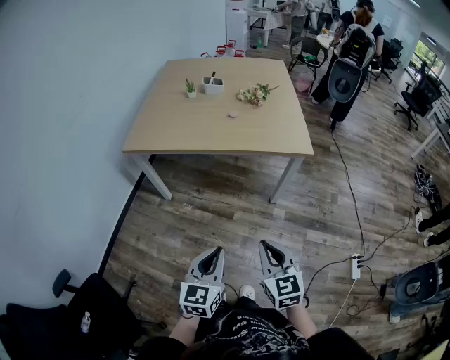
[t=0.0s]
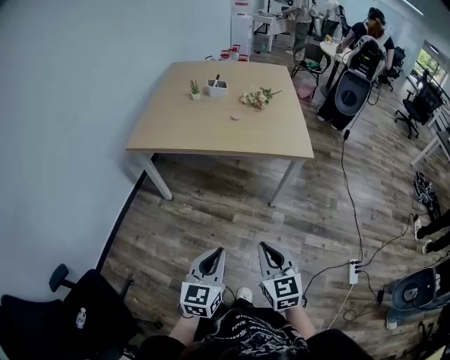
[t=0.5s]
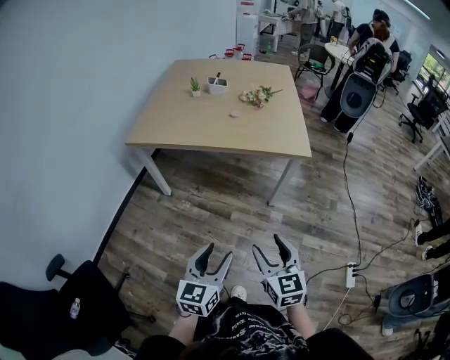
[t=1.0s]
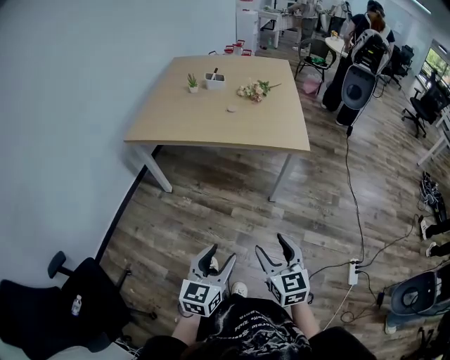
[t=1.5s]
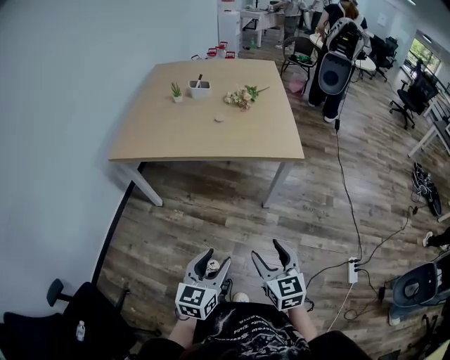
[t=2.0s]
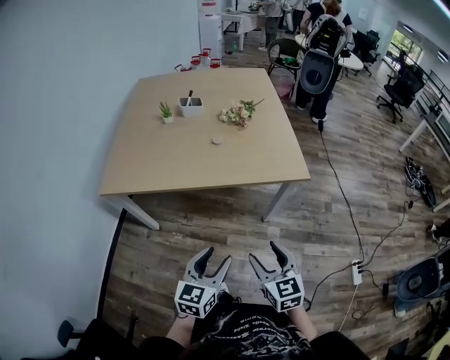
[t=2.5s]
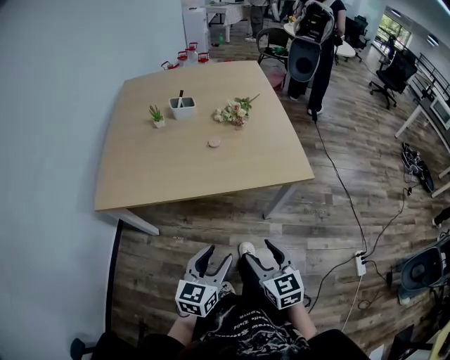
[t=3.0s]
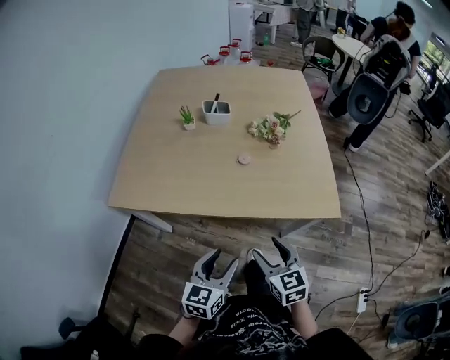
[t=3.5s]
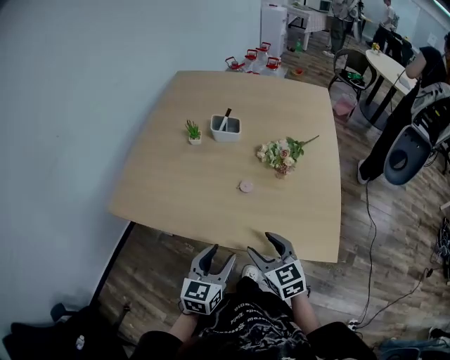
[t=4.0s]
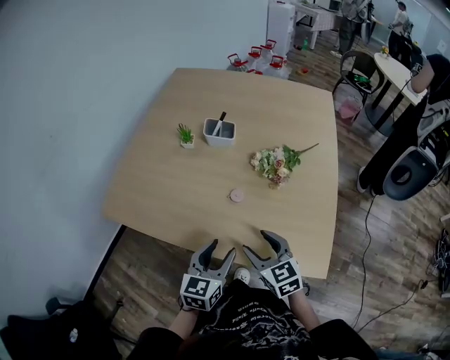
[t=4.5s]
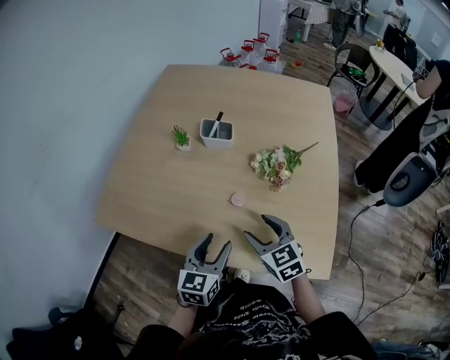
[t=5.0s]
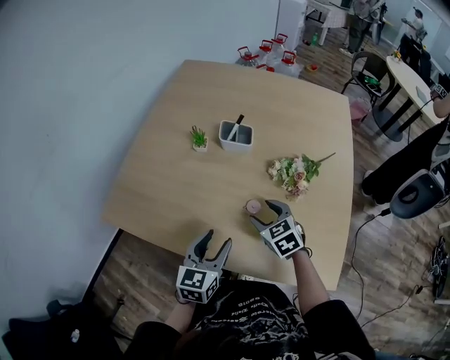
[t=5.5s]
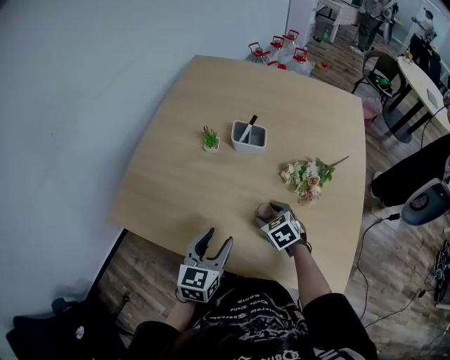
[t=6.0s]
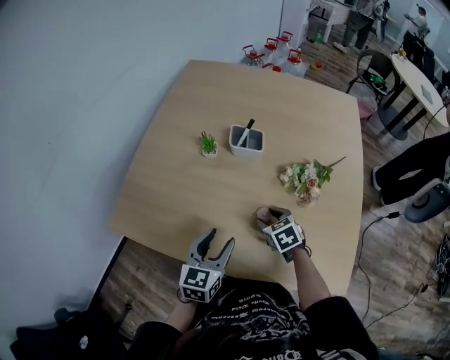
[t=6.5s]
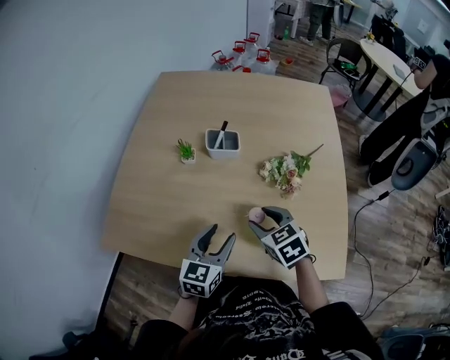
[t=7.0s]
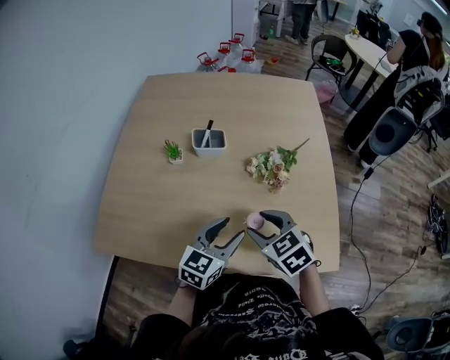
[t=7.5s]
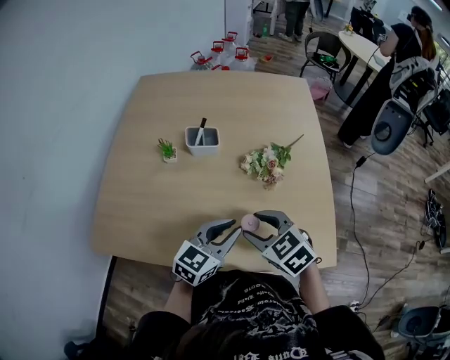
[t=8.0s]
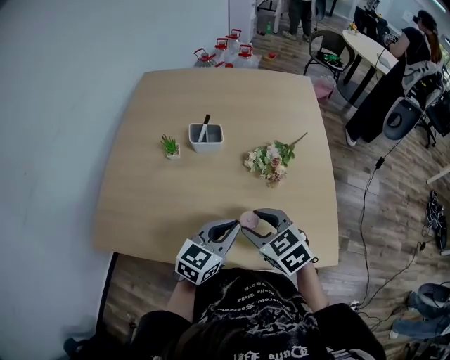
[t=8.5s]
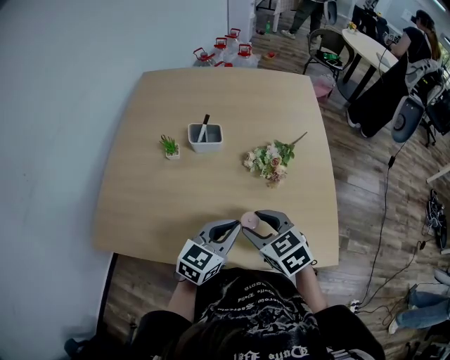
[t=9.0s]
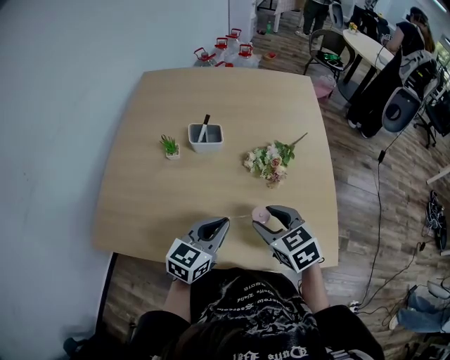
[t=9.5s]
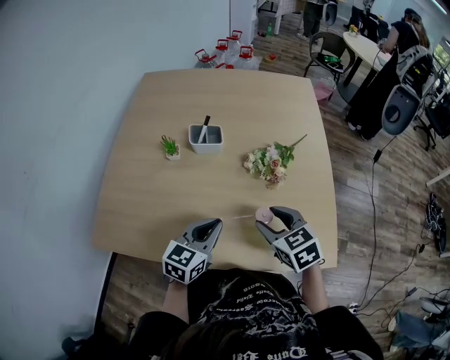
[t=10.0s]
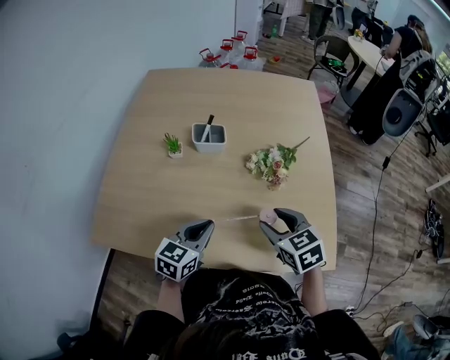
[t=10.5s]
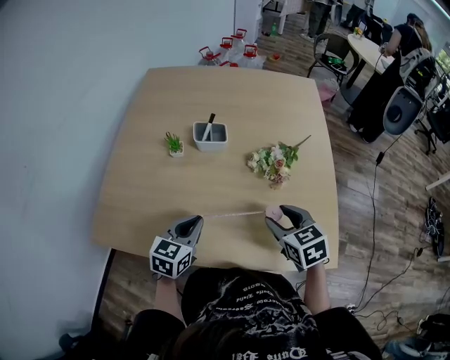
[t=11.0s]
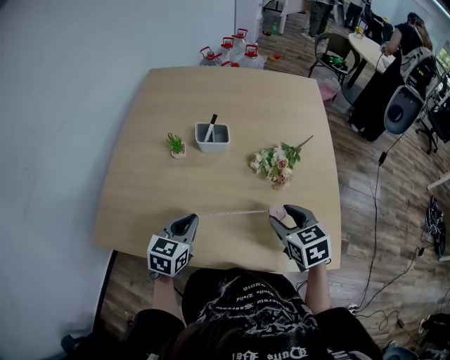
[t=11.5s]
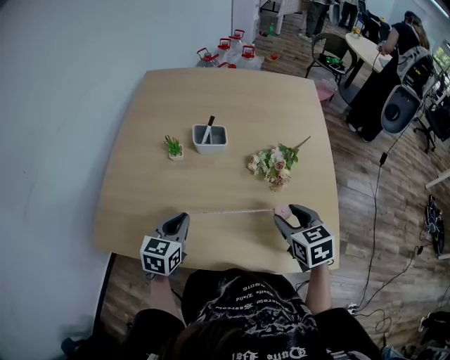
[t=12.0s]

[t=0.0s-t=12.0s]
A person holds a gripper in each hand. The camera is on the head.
t=0.0s to t=2.0s: The right gripper goes about 10 cm to the right and downward, and opens its fingers, while the left gripper moves to the right, about 5 cm, and opens its fingers.
t=2.0s to t=4.0s: The pair of grippers is taken forward, some 50 cm. The right gripper rotates about 20 degrees.
t=4.0s to t=6.0s: The left gripper goes roughly 15 cm forward. The right gripper heads forward and downward, covering some 25 cm, and swivels some 30 degrees.
t=6.0s to t=8.0s: The right gripper goes about 20 cm upward and backward, while the left gripper travels to the right by some 15 cm, turns by about 40 degrees, and closes its fingers.
t=8.0s to t=10.0s: The left gripper travels to the left by roughly 5 cm.
t=10.0s to t=12.0s: The left gripper goes some 10 cm to the left.

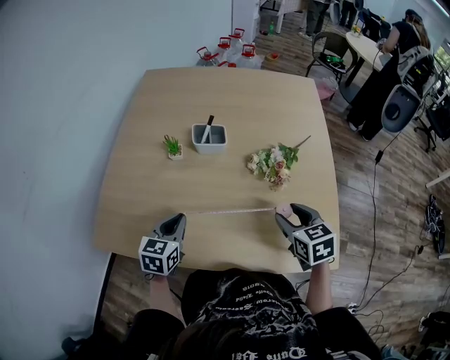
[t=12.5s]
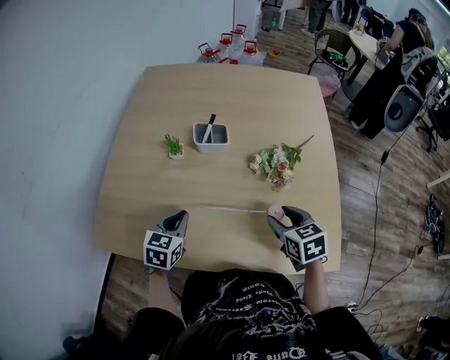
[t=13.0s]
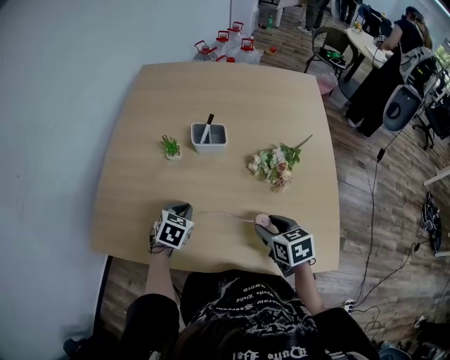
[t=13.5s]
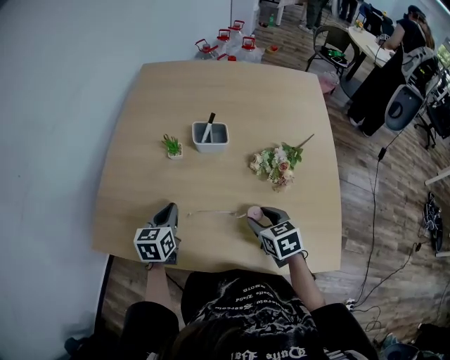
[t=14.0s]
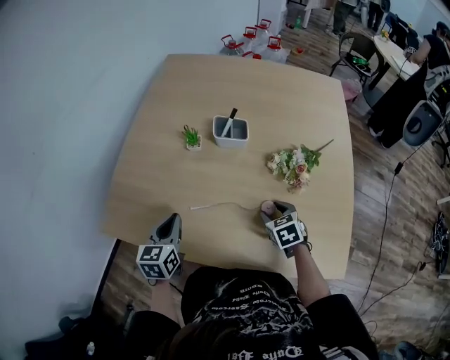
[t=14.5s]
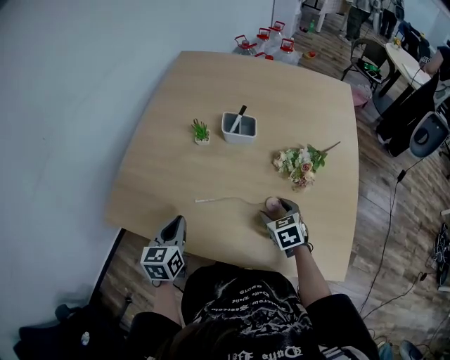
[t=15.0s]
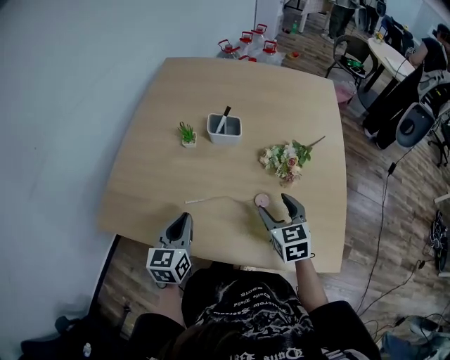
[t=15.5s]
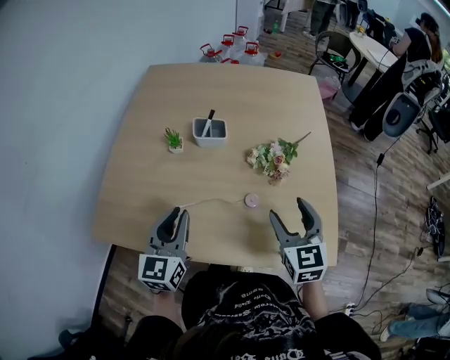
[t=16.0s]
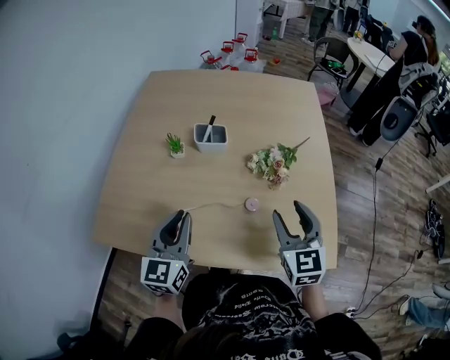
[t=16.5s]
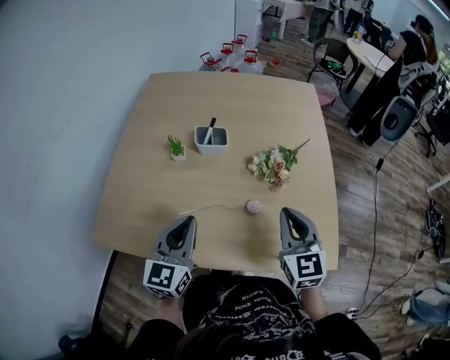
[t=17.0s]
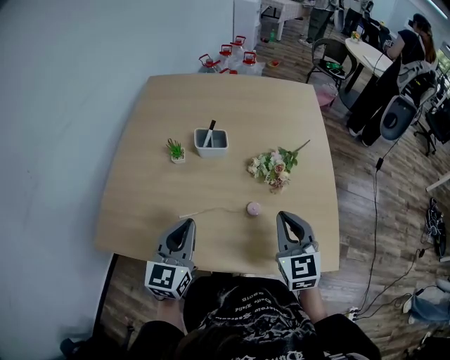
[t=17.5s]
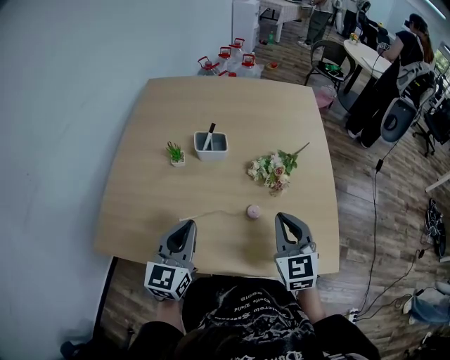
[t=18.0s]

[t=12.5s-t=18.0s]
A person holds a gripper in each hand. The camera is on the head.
t=12.5s to t=14.5s: The right gripper goes about 15 cm downward and to the left; the left gripper is displaced to the left by roughly 5 cm, and travels downward and back again, roughly 10 cm each way.
t=14.5s to t=16.0s: The left gripper is displaced upward and to the right by some 15 cm, and swivels about 20 degrees. Meanwhile the right gripper is displaced upward by approximately 20 cm, and angles its fingers upward, by some 30 degrees.
t=16.0s to t=18.0s: The right gripper closes up.

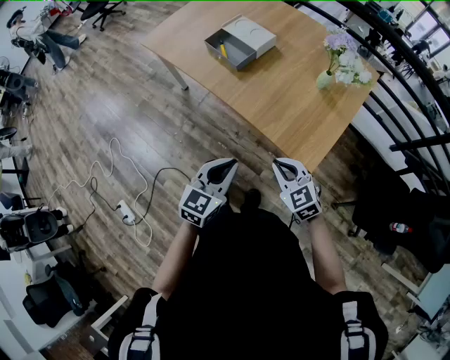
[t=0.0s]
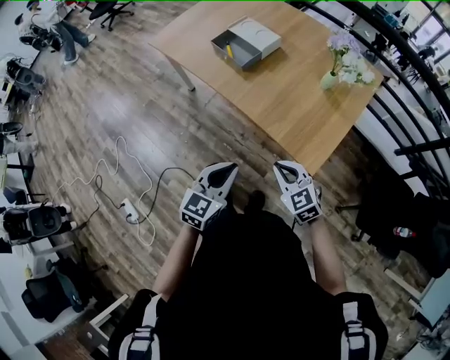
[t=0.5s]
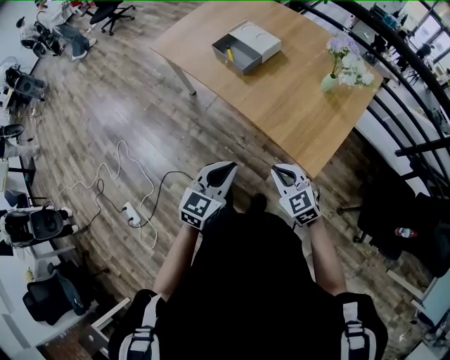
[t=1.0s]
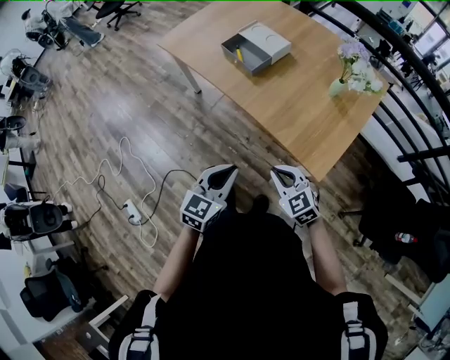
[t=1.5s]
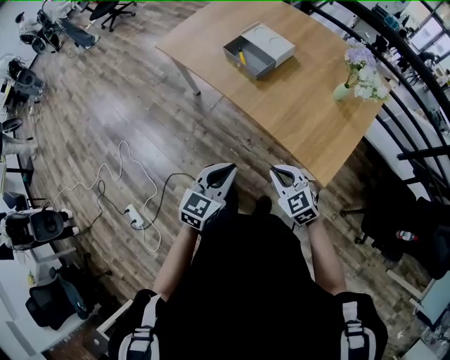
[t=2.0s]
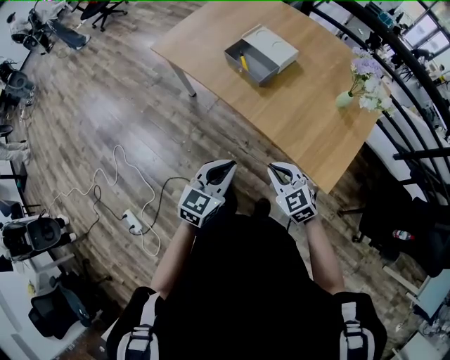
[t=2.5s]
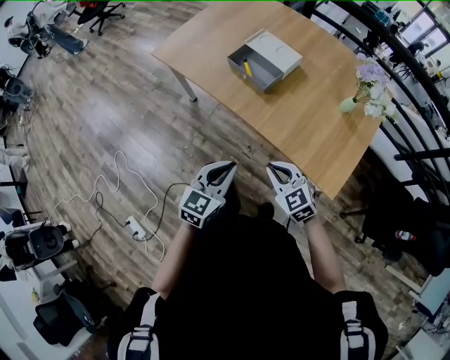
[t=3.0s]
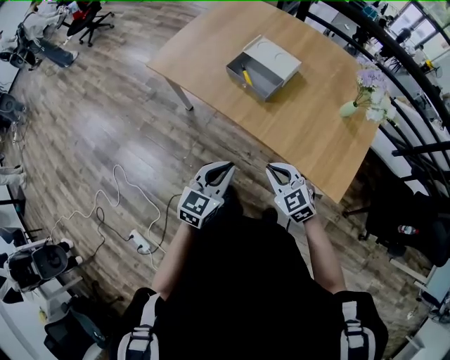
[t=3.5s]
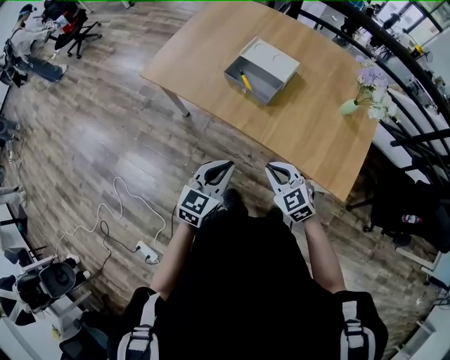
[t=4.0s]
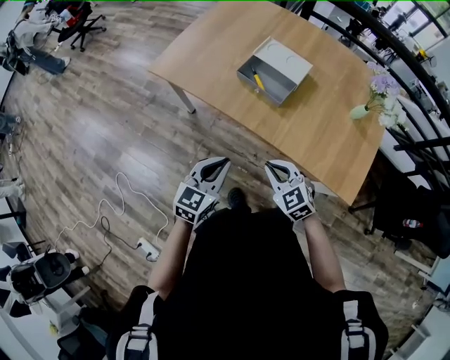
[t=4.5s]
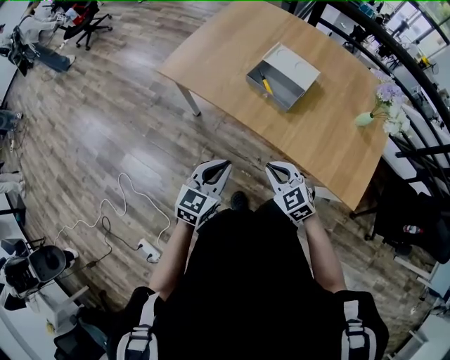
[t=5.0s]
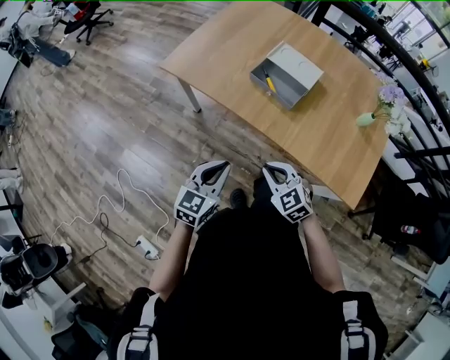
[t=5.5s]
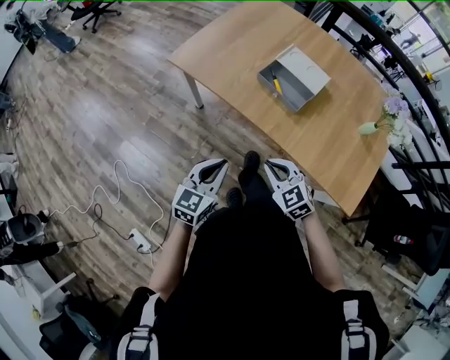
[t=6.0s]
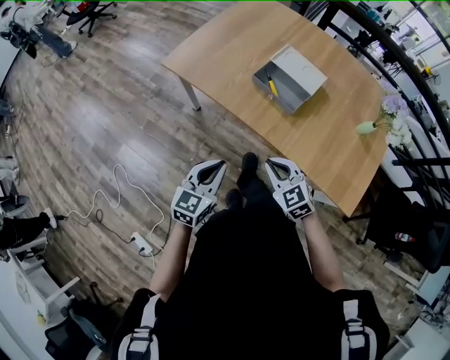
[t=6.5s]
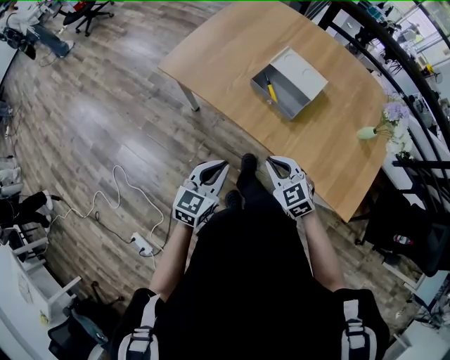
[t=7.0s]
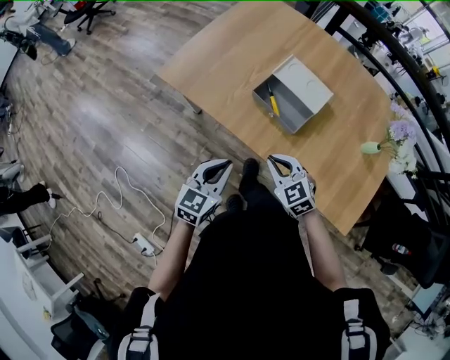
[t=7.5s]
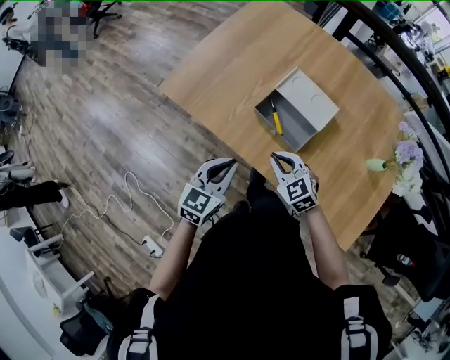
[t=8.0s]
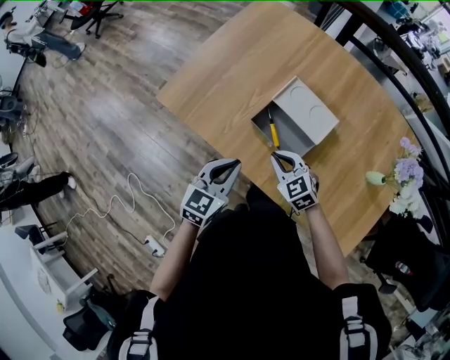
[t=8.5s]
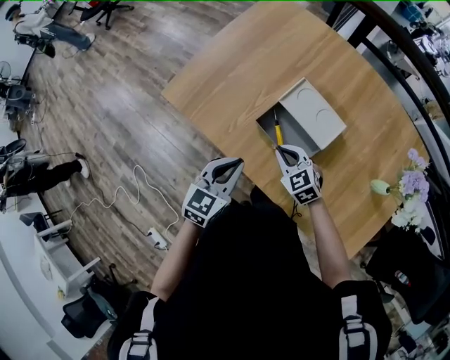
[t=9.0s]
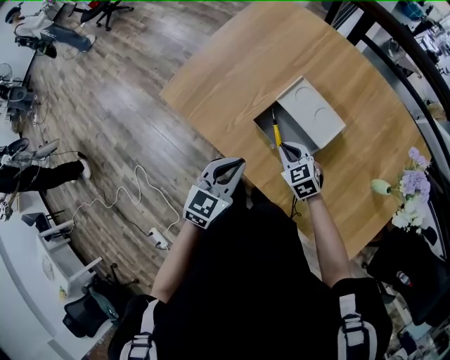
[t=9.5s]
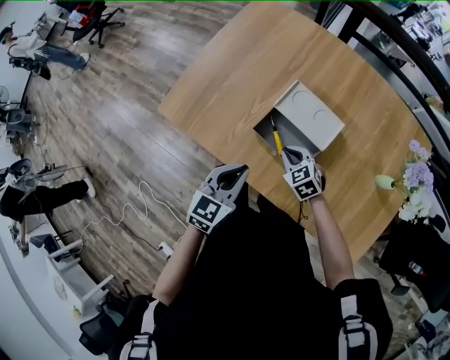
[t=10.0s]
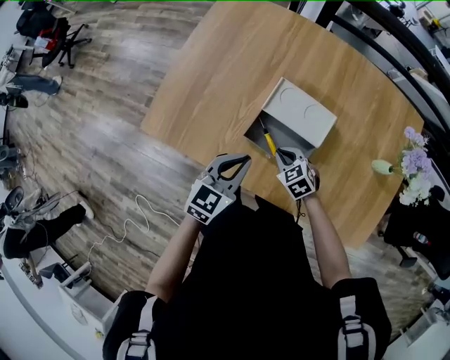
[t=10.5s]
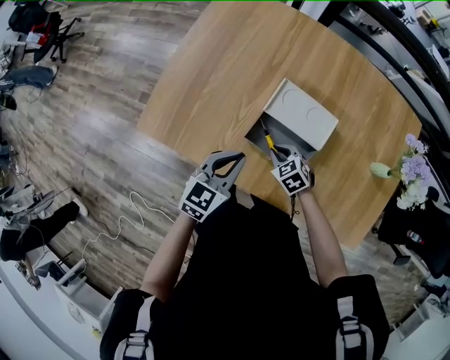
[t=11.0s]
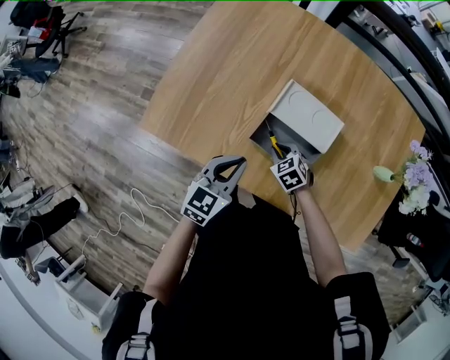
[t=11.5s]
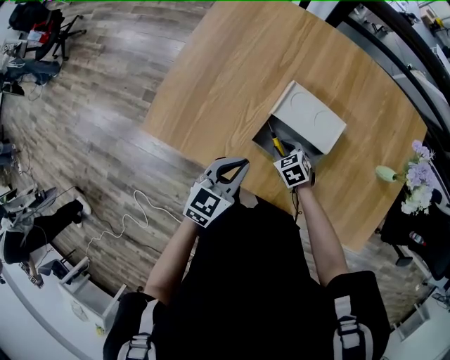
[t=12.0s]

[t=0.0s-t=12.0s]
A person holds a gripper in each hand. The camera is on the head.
t=0.0s to t=2.0s: Both grippers move to the left, some 10 cm.
t=2.0s to t=4.0s: Both grippers travel together forward and to the left, about 20 cm.
t=4.0s to t=6.0s: Both grippers move to the left, roughly 10 cm.
t=6.0s to t=8.0s: The grippers both shift forward by approximately 20 cm.
t=8.0s to t=10.0s: The right gripper is displaced forward, downward and to the right by about 15 cm. Meanwhile the left gripper moves forward and to the right, approximately 10 cm.
t=10.0s to t=12.0s: The right gripper travels downward by approximately 10 cm, rotates about 20 degrees, and opens. The left gripper goes roughly 10 cm forward.
